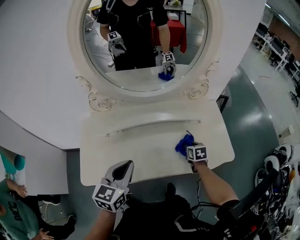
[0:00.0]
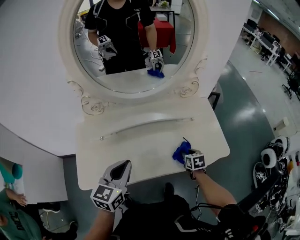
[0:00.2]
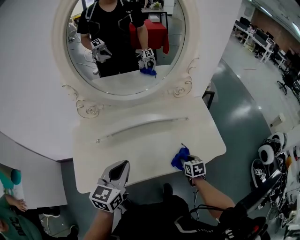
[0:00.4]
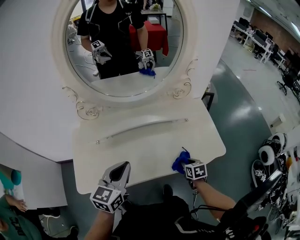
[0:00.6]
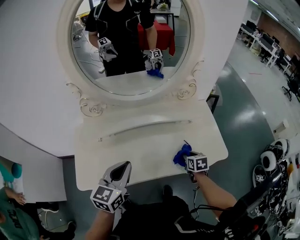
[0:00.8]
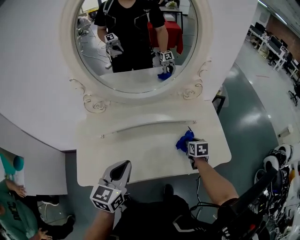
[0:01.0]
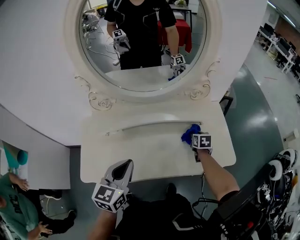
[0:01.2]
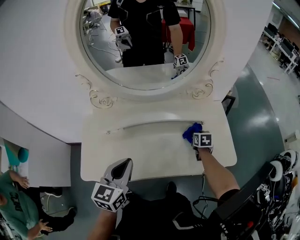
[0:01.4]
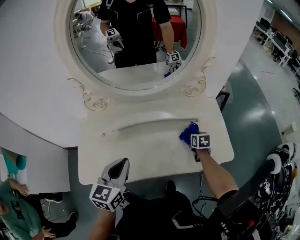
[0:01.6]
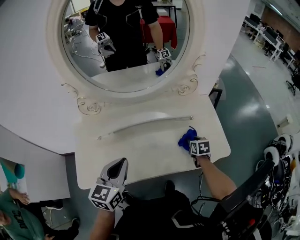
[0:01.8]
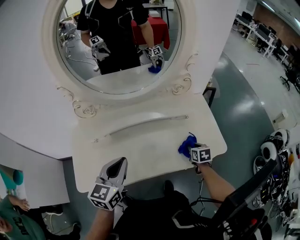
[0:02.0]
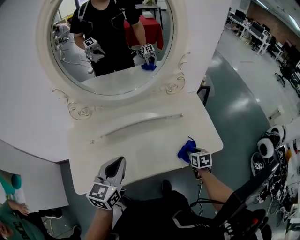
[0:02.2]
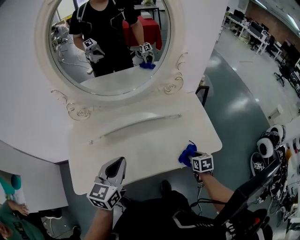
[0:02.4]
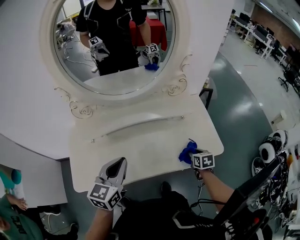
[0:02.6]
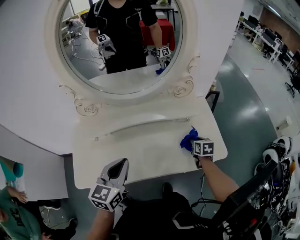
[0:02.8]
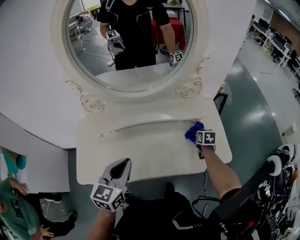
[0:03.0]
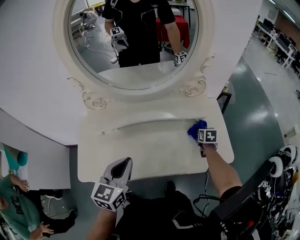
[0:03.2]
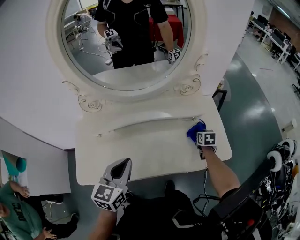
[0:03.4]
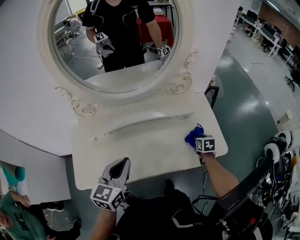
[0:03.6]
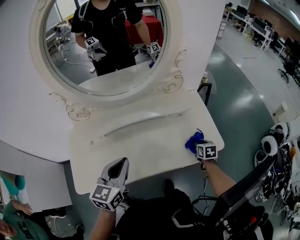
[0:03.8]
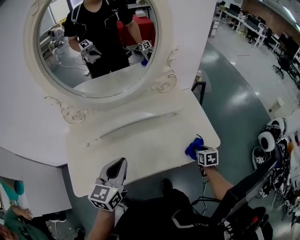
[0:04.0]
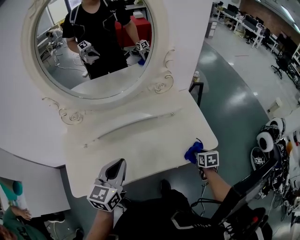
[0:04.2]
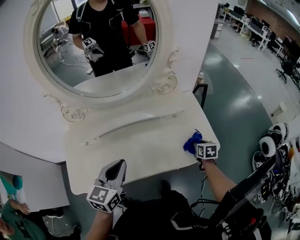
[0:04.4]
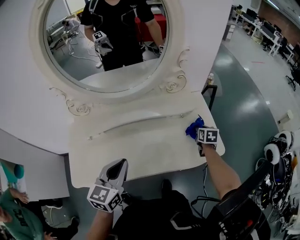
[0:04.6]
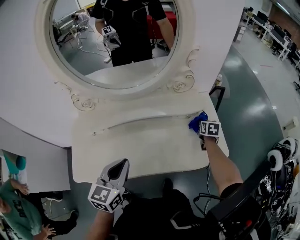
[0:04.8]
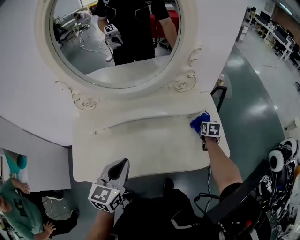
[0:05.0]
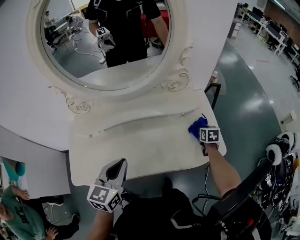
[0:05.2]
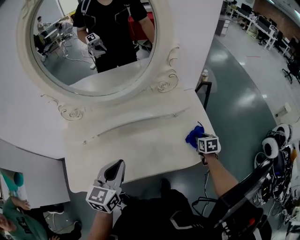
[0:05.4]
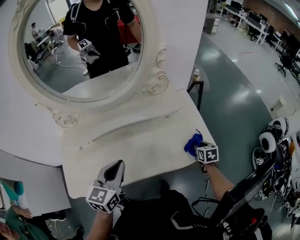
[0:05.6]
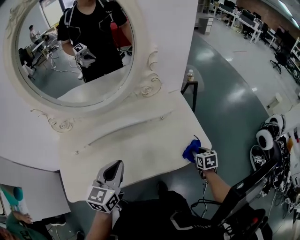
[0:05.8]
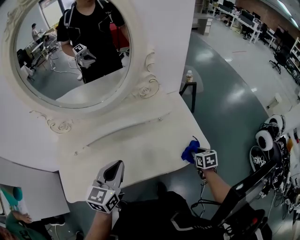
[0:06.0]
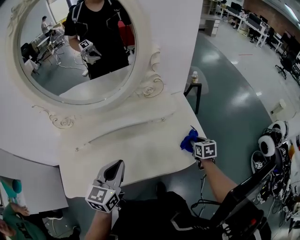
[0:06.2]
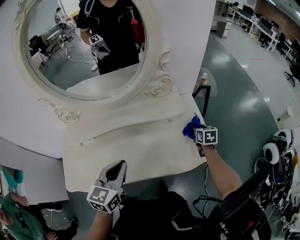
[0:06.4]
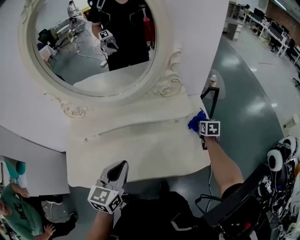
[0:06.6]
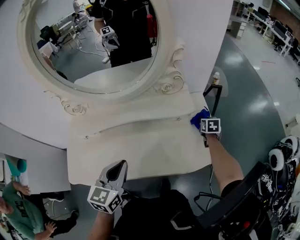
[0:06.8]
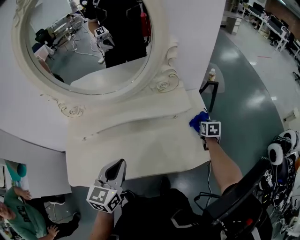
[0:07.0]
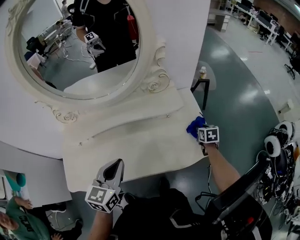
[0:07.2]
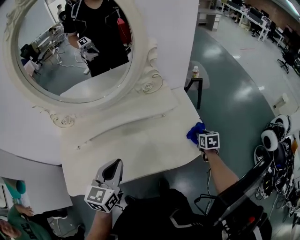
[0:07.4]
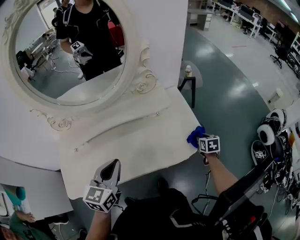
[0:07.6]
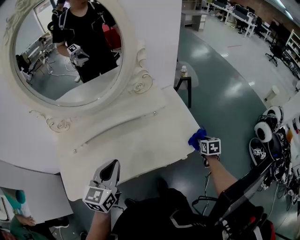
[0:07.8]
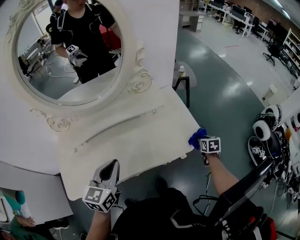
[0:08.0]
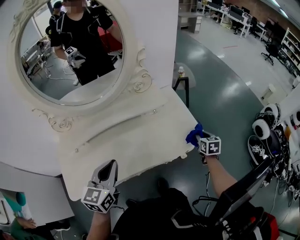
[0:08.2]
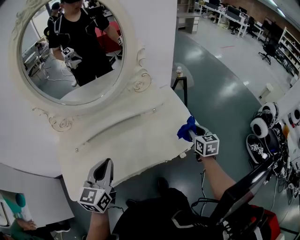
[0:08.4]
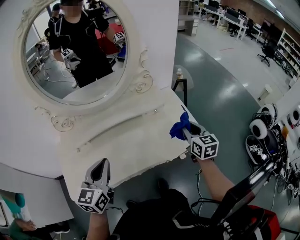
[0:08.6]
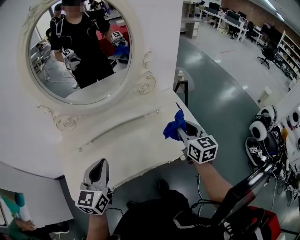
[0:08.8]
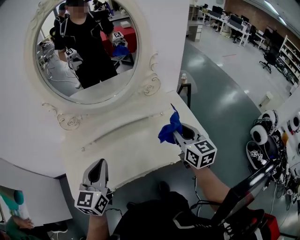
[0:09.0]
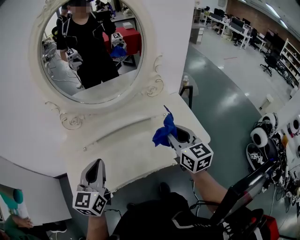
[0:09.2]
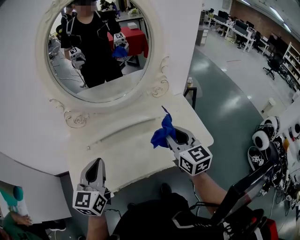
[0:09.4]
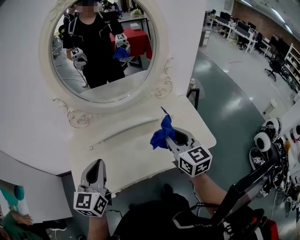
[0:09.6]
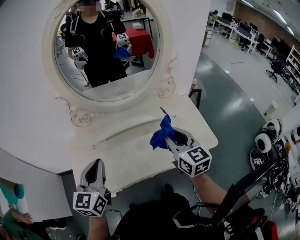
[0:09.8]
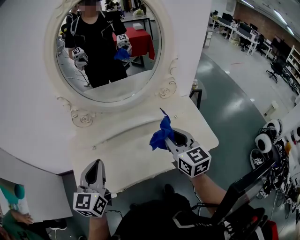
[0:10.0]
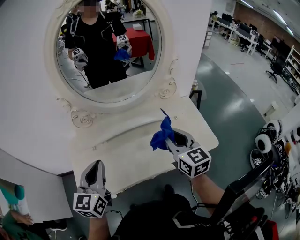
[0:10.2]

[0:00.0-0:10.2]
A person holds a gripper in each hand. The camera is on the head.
0:00.0 to 0:01.4: The right gripper travels forward by some 10 cm.
0:01.4 to 0:03.0: The right gripper moves to the right, roughly 5 cm, and reaches about 20 cm backward, then returns.
0:03.0 to 0:04.4: The right gripper travels backward and to the right by approximately 15 cm.
0:04.4 to 0:05.8: The right gripper goes forward and returns, about 15 cm each way; the left gripper changes place by roughly 5 cm.
0:05.8 to 0:07.2: The right gripper travels forward by roughly 15 cm.
0:07.2 to 0:08.8: The right gripper heads upward, backward and to the left, covering about 30 cm, and tips its fingers upward by approximately 30 degrees; the left gripper moves to the left, backward and upward, approximately 10 cm.
0:08.8 to 0:10.2: The left gripper moves to the left, approximately 10 cm. The right gripper moves to the left, approximately 15 cm.

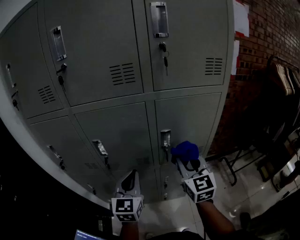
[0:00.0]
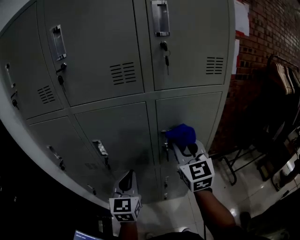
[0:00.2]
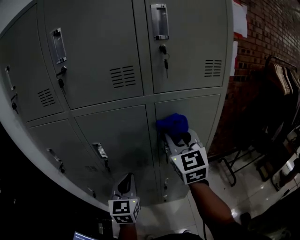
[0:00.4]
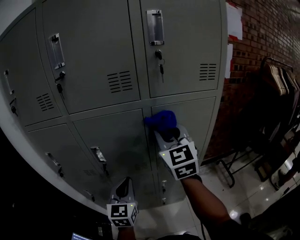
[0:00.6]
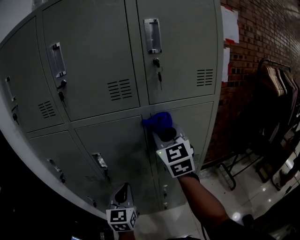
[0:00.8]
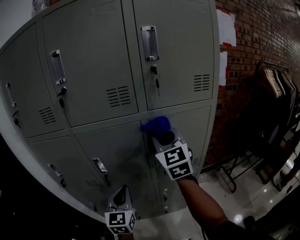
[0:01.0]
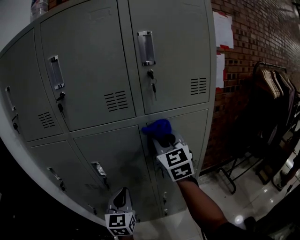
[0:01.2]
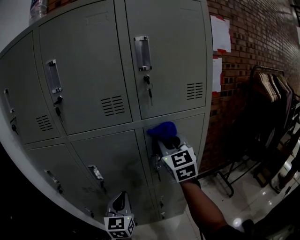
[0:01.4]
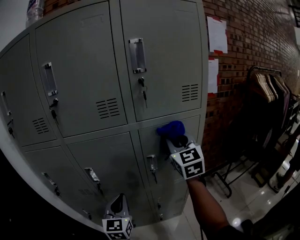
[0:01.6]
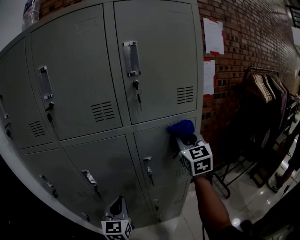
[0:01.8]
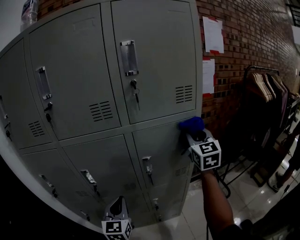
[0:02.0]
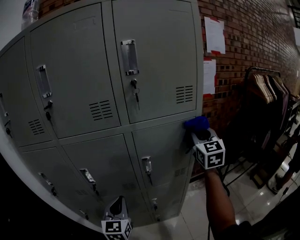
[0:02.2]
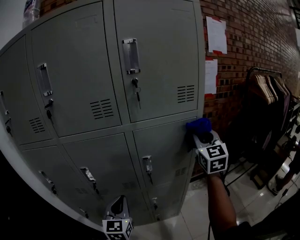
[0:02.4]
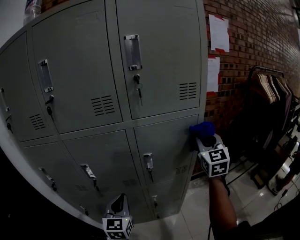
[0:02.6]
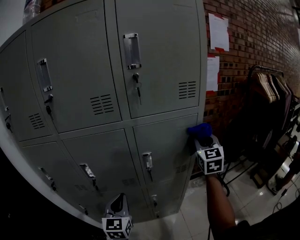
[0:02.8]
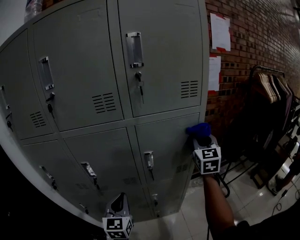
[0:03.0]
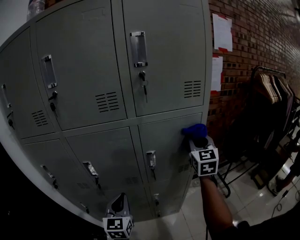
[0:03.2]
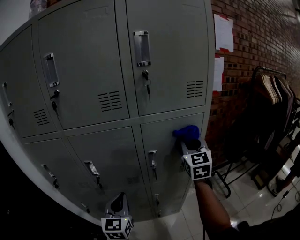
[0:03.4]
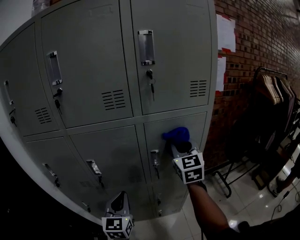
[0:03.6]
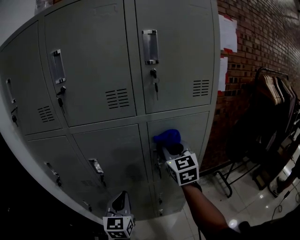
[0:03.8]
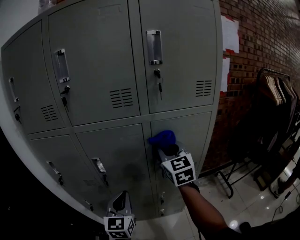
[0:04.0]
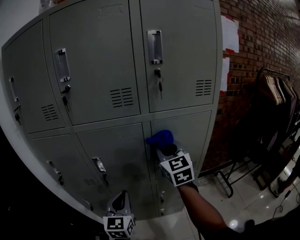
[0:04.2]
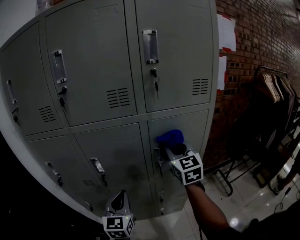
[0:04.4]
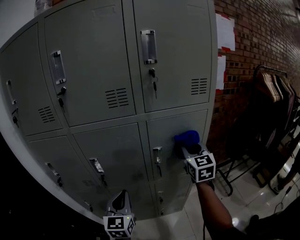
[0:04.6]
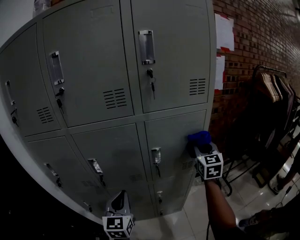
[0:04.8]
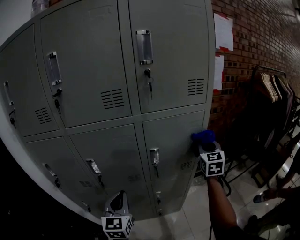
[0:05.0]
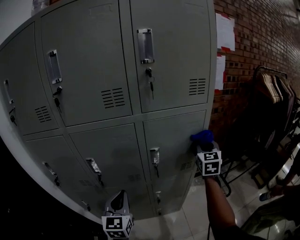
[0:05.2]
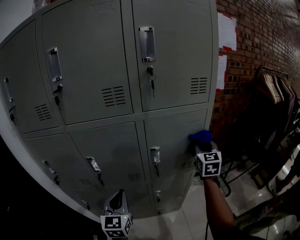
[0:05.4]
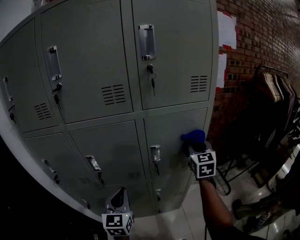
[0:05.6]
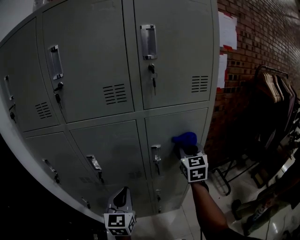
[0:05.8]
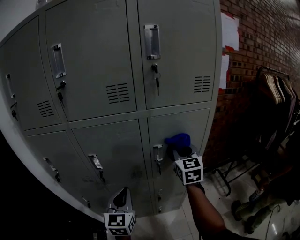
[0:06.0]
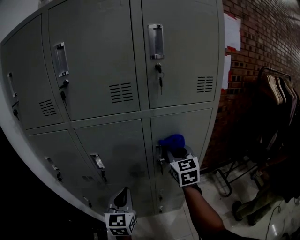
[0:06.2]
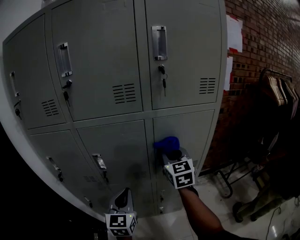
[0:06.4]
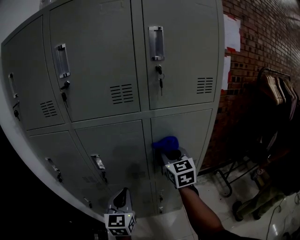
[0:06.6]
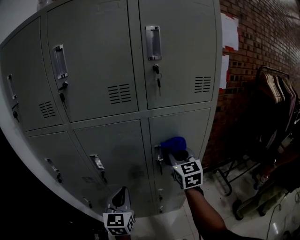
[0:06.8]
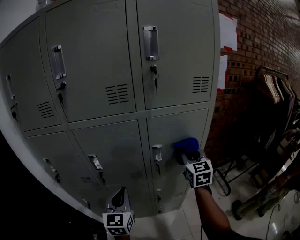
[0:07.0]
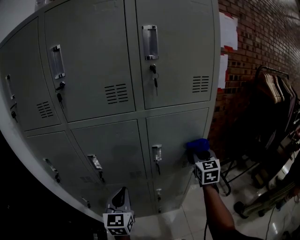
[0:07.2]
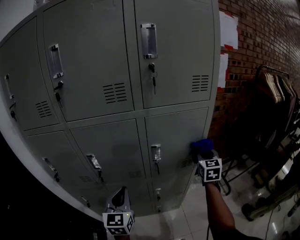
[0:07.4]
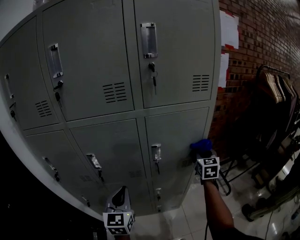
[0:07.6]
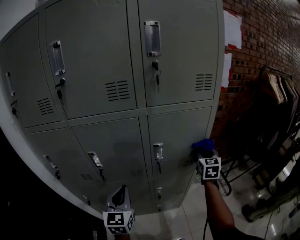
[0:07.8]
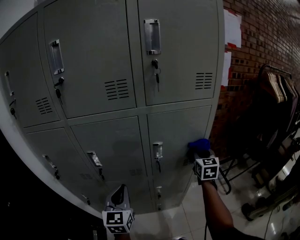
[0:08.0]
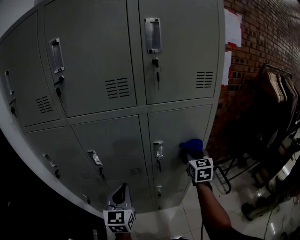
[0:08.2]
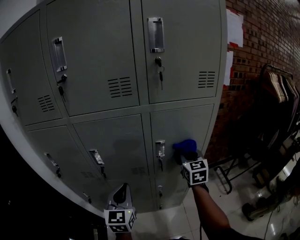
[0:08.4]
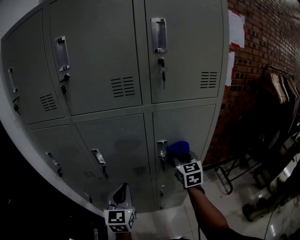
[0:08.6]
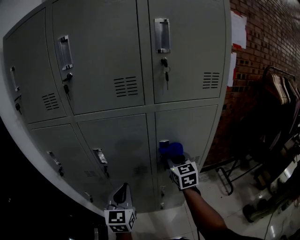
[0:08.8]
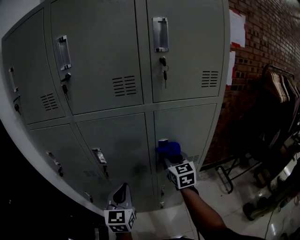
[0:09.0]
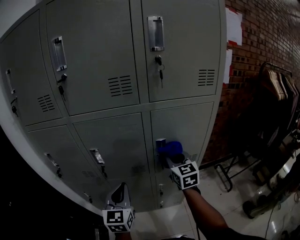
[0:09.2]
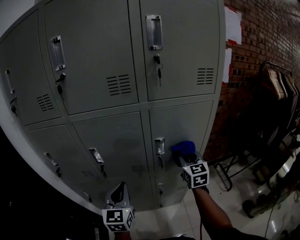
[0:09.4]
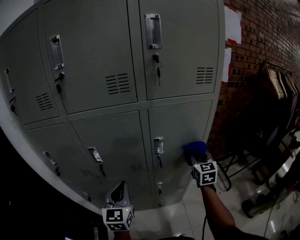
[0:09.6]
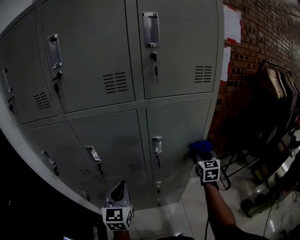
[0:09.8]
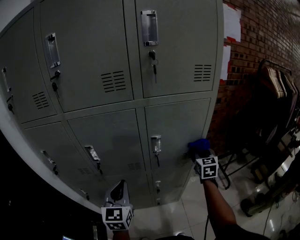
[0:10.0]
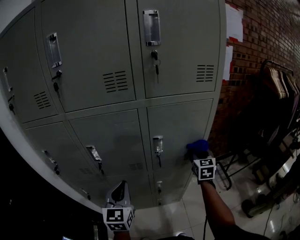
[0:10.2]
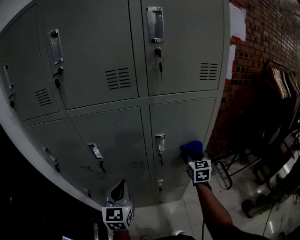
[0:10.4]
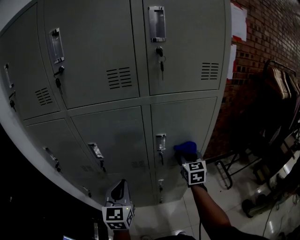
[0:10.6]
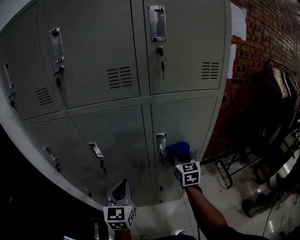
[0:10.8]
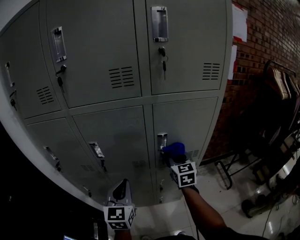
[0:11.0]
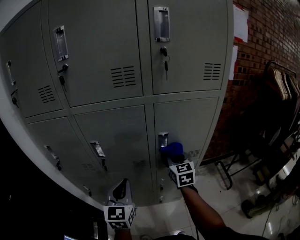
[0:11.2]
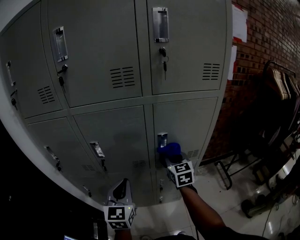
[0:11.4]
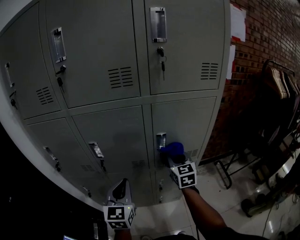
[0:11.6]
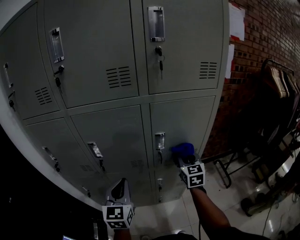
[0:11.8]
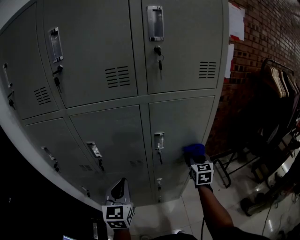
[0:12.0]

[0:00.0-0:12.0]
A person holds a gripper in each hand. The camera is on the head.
0:00.0 to 0:01.6: The right gripper shifts roughly 15 cm upward and forward.
0:01.6 to 0:03.0: The right gripper goes some 15 cm to the right.
0:03.0 to 0:04.4: The right gripper heads to the left, covering about 20 cm, and turns by about 20 degrees.
0:04.4 to 0:06.0: The right gripper moves approximately 20 cm to the right and comes back.
0:06.0 to 0:07.6: The right gripper travels to the right and downward by about 15 cm.
0:07.6 to 0:09.0: The right gripper travels to the left by about 20 cm, and changes its angle by about 20 degrees.
0:09.0 to 0:10.4: The right gripper moves to the right and downward, approximately 15 cm.
0:10.4 to 0:12.0: The right gripper moves approximately 15 cm to the left and comes back.

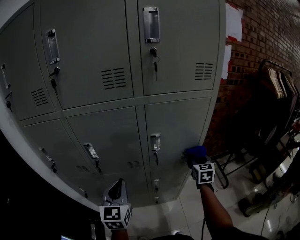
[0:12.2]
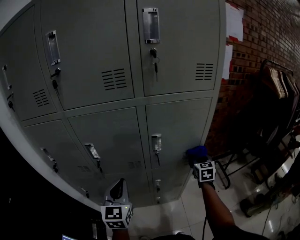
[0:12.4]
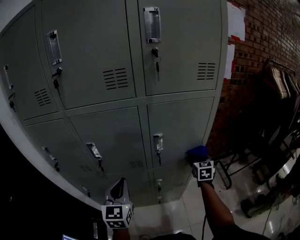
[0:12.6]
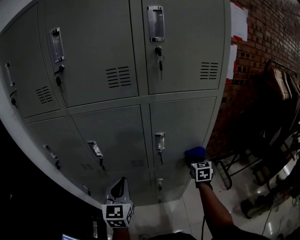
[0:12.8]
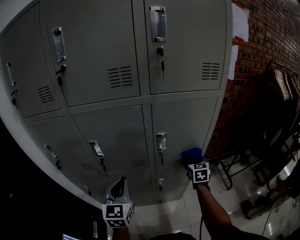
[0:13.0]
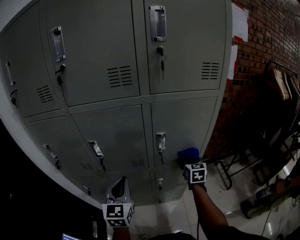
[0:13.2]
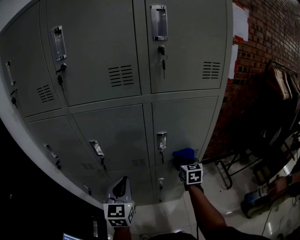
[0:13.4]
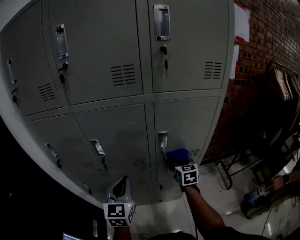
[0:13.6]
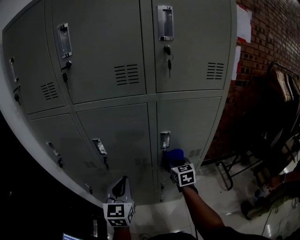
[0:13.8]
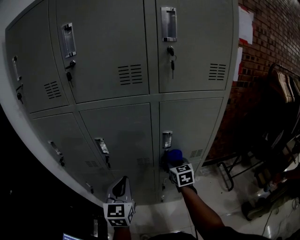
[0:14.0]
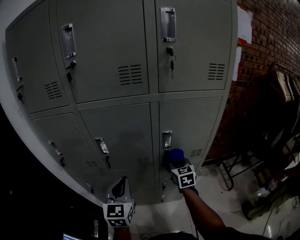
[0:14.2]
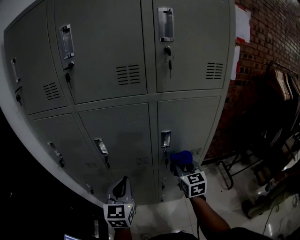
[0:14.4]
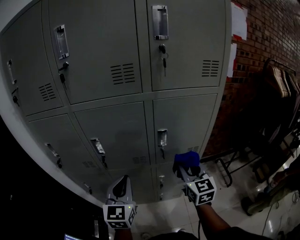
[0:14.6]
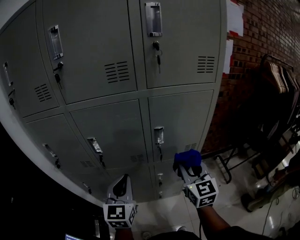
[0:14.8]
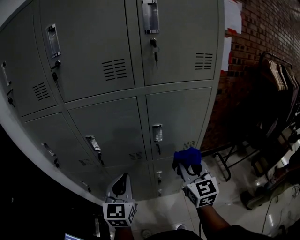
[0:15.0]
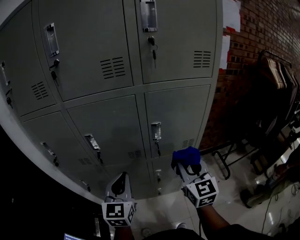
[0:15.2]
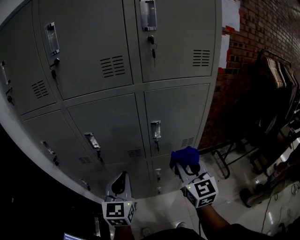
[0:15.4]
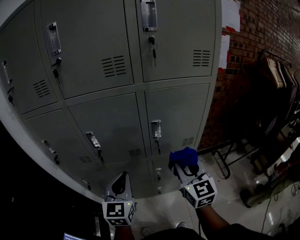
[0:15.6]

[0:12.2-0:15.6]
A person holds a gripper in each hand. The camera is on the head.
0:12.2 to 0:13.8: The right gripper is displaced to the left by roughly 15 cm.
0:13.8 to 0:15.6: The right gripper goes approximately 20 cm backward and upward, and swivels some 20 degrees.
